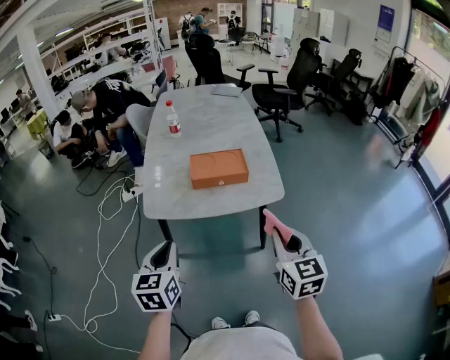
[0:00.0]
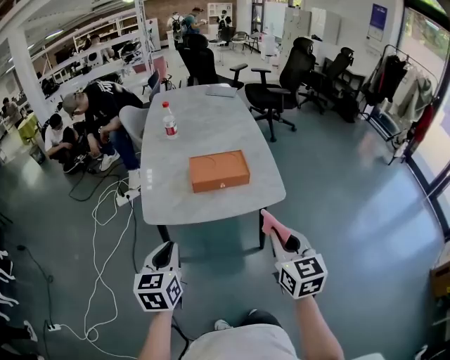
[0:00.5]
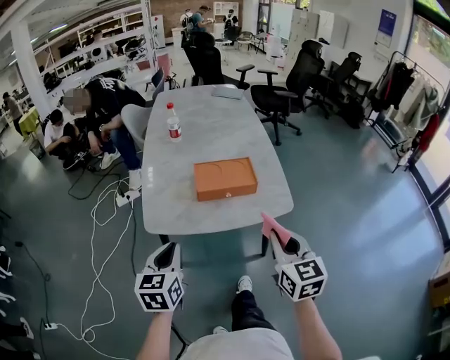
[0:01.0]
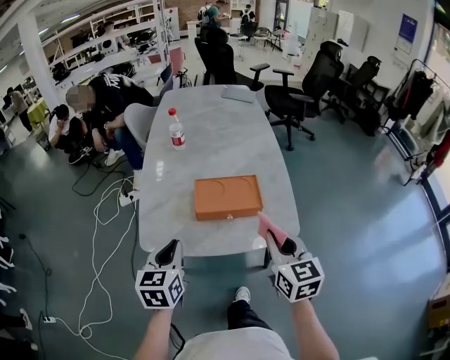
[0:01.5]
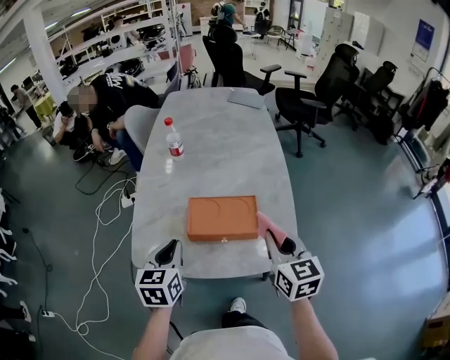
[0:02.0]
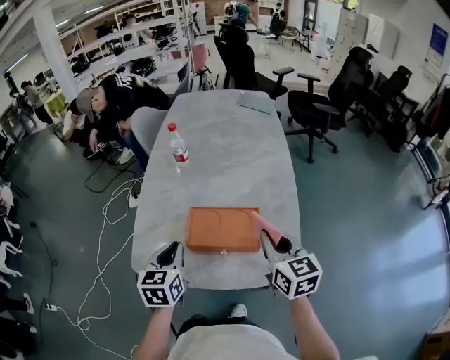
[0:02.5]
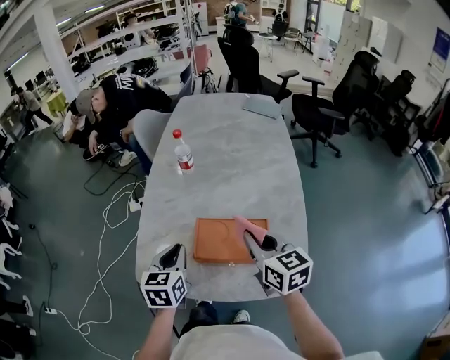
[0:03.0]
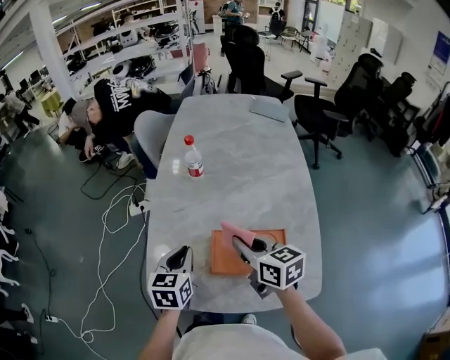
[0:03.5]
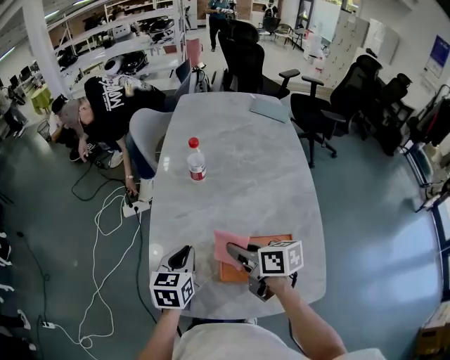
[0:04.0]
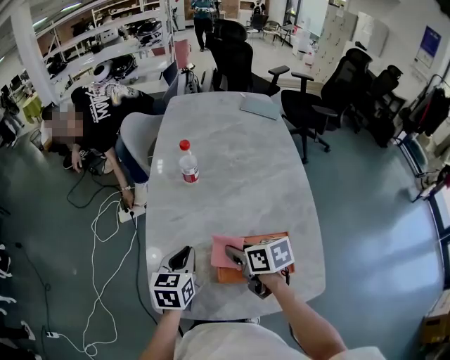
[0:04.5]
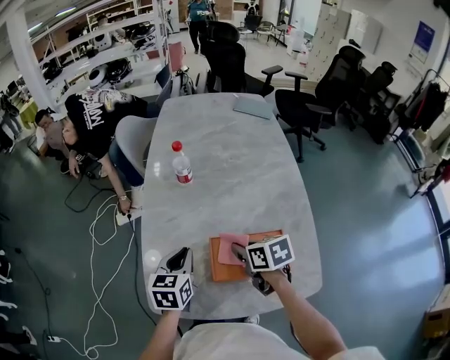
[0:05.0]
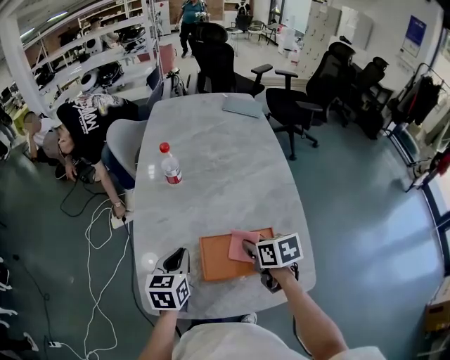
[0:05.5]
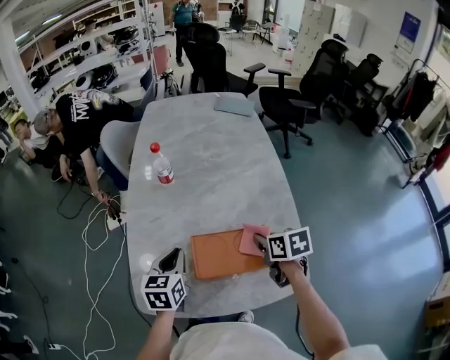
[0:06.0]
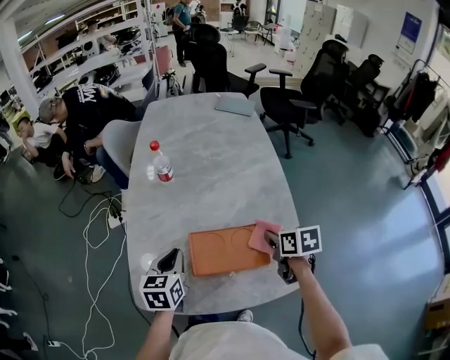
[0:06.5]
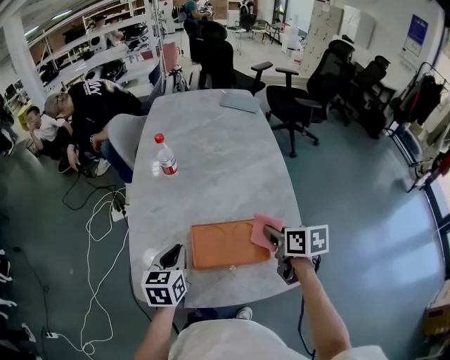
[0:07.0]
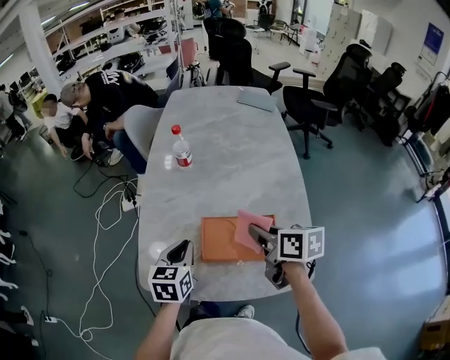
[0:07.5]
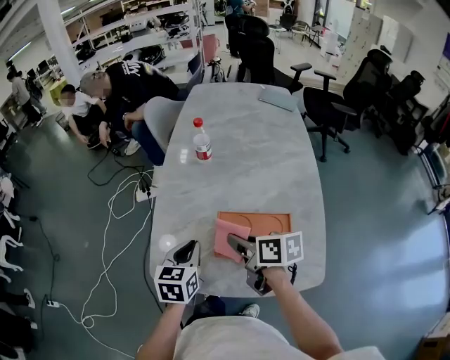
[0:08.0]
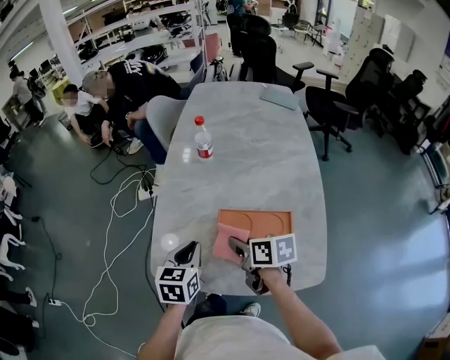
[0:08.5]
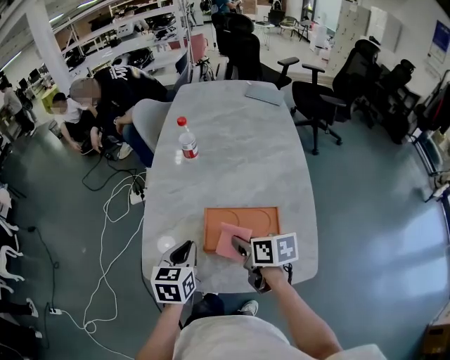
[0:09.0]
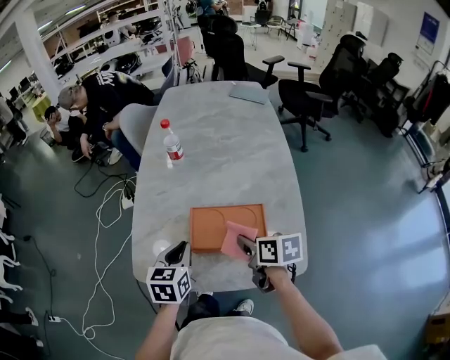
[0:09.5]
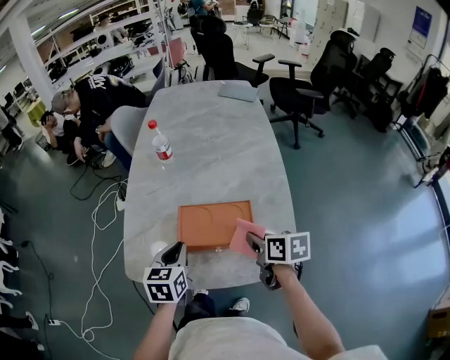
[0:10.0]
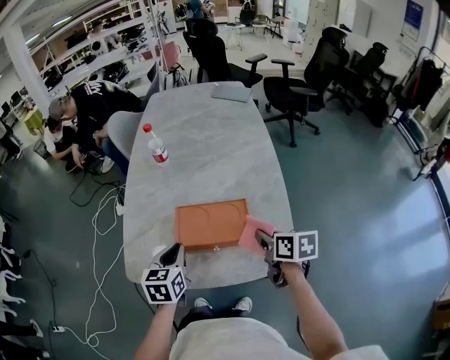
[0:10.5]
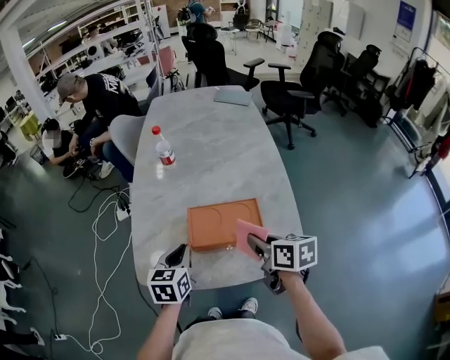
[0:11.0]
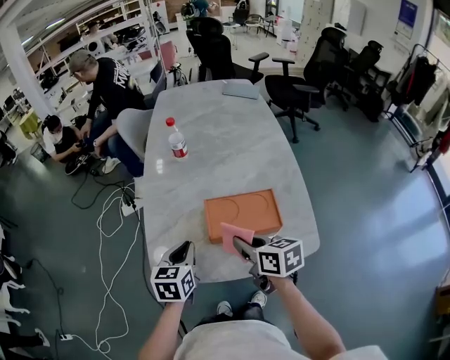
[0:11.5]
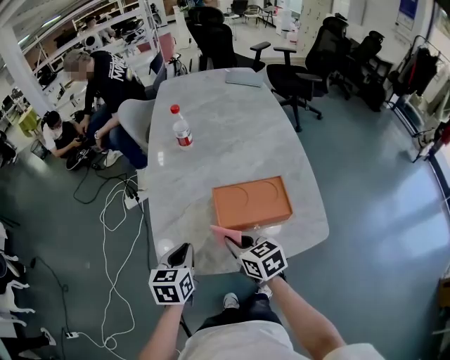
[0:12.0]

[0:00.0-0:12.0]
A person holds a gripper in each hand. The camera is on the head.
0:00.0 to 0:02.0: The grippers both shift forward by some 25 cm.
0:02.0 to 0:04.0: The right gripper moves forward and to the left, about 25 cm, and changes its angle by some 50 degrees. Meanwhile the left gripper goes some 15 cm forward.
0:04.0 to 0:06.0: The left gripper shifts by approximately 5 cm; the right gripper travels to the right by roughly 15 cm, and rotates about 30 degrees.
0:06.0 to 0:08.0: The left gripper moves backward, about 5 cm; the right gripper shifts about 15 cm to the left, and swivels roughly 30 degrees.
0:08.0 to 0:10.0: The right gripper is displaced to the right and backward by approximately 20 cm, while the left gripper is displaced to the right by approximately 5 cm.
0:10.0 to 0:12.0: The left gripper heads to the left, covering some 10 cm; the right gripper heads to the left, covering some 20 cm, and changes its angle by some 30 degrees.

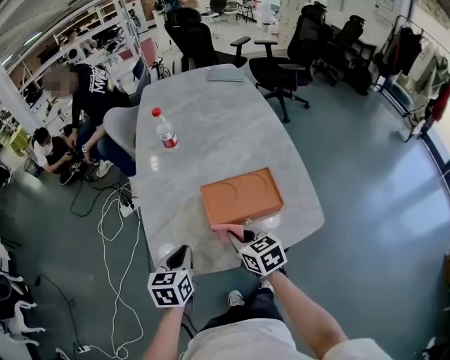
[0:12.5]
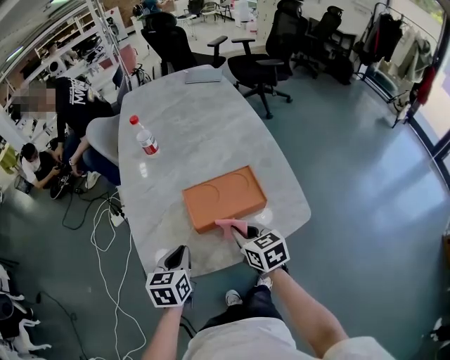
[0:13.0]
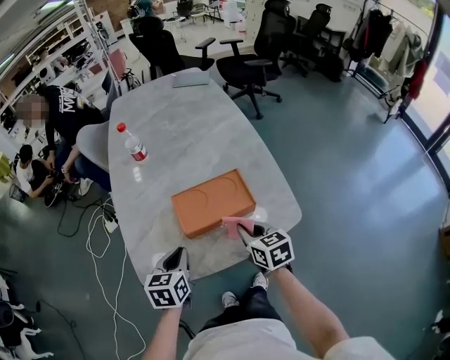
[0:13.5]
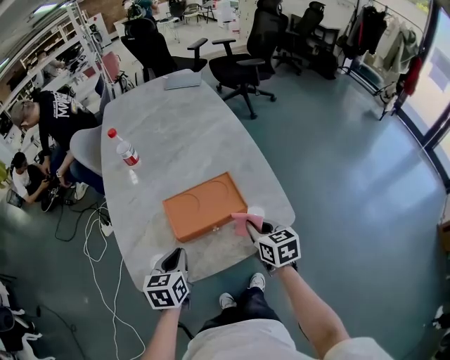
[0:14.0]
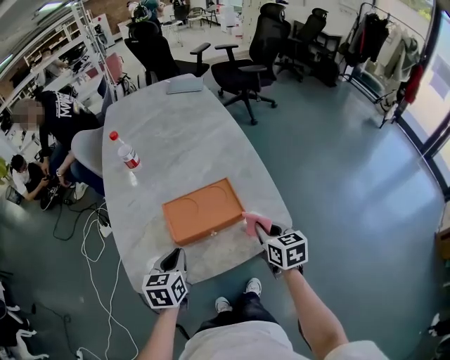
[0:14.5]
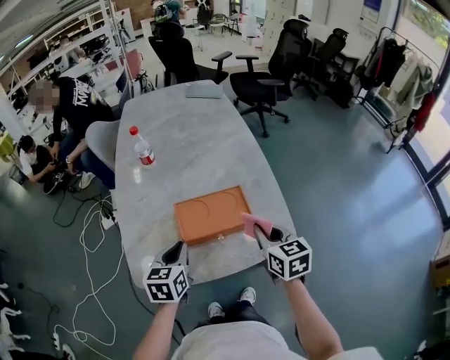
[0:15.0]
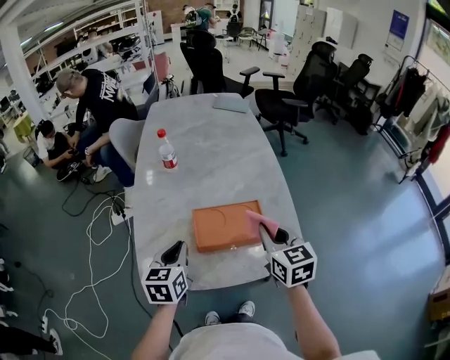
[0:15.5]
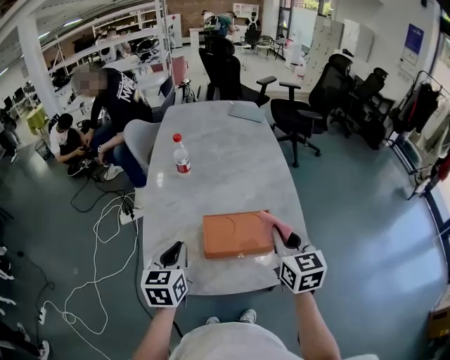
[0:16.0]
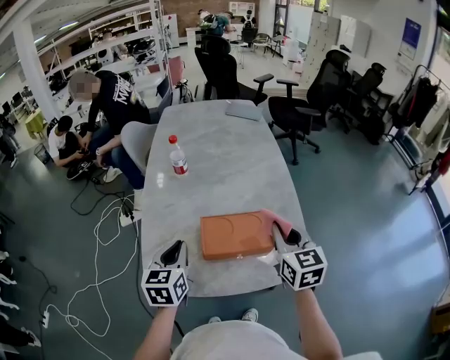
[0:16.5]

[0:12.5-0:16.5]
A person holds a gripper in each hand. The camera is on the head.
0:12.5 to 0:14.5: The right gripper moves to the right, roughly 20 cm, and swivels about 20 degrees. Meanwhile the left gripper heads to the right, covering some 10 cm.
0:14.5 to 0:16.5: The left gripper is displaced upward and to the left by some 10 cm. Meanwhile the right gripper goes about 15 cm upward and forward, and turns by some 20 degrees.

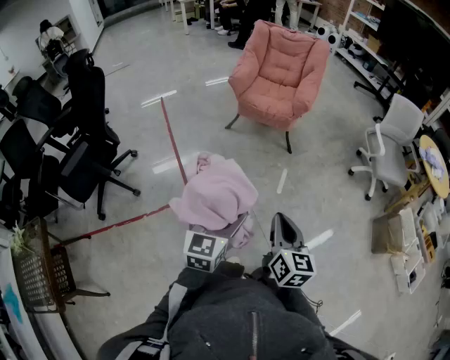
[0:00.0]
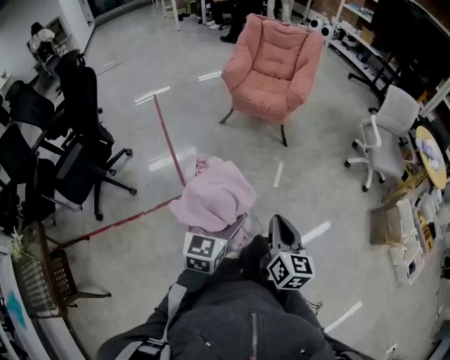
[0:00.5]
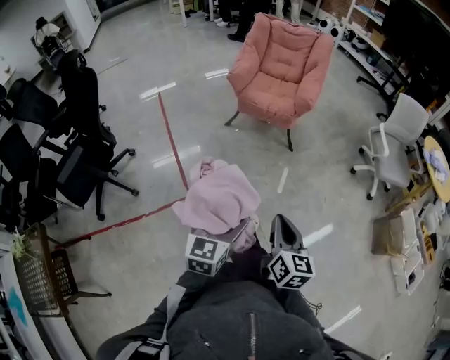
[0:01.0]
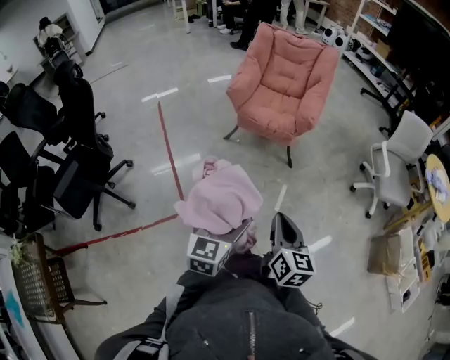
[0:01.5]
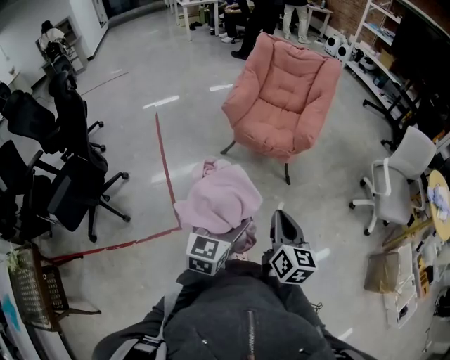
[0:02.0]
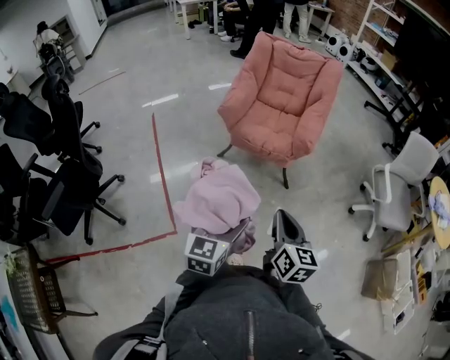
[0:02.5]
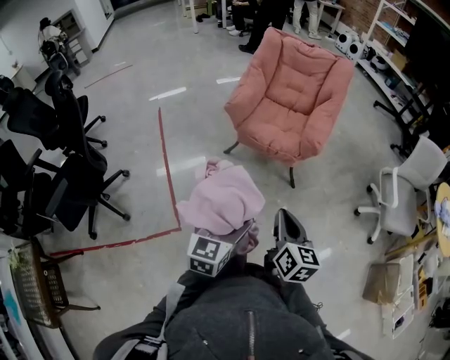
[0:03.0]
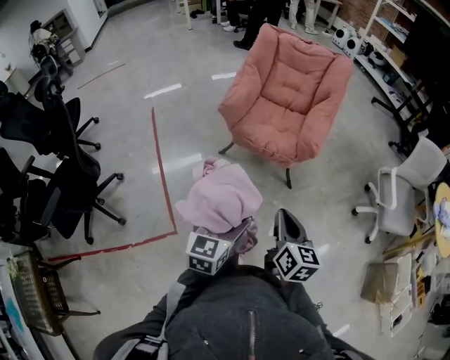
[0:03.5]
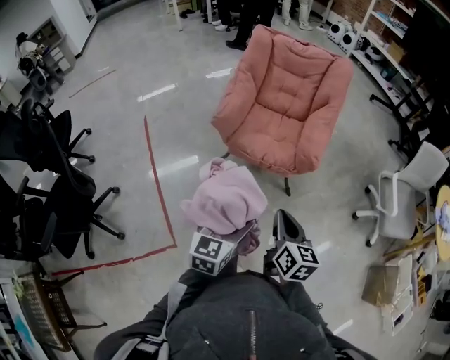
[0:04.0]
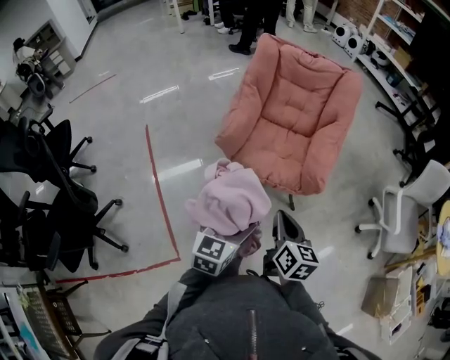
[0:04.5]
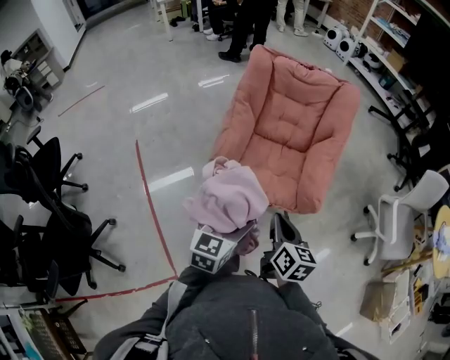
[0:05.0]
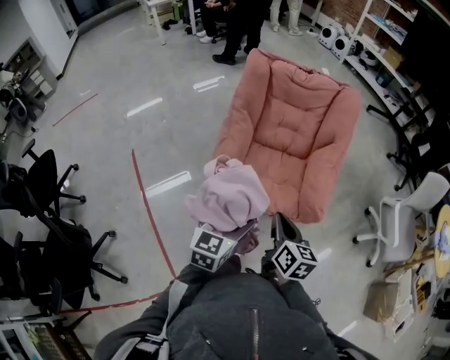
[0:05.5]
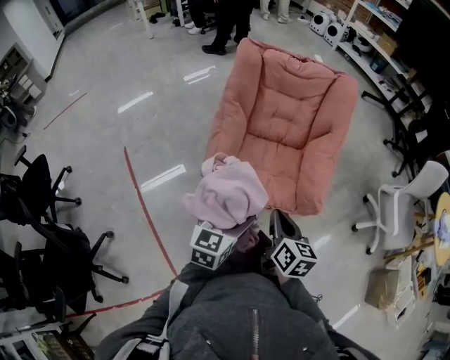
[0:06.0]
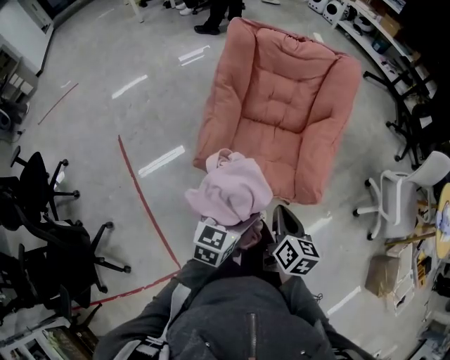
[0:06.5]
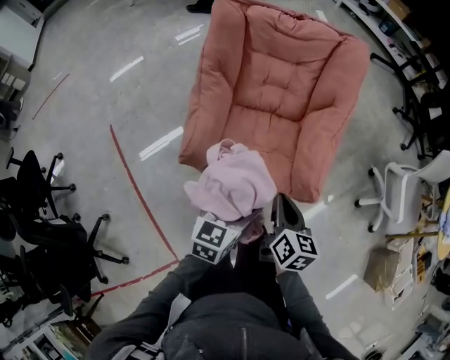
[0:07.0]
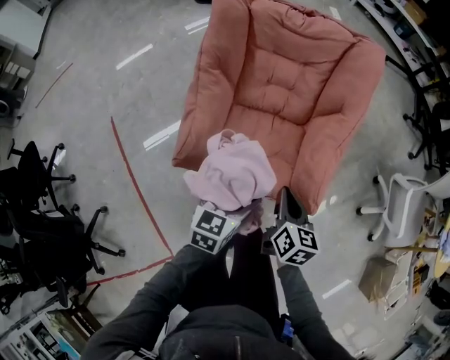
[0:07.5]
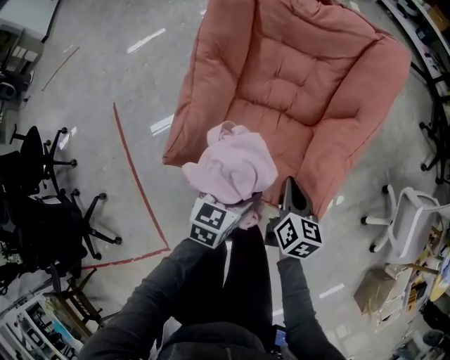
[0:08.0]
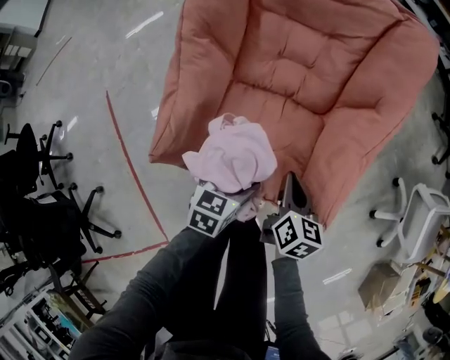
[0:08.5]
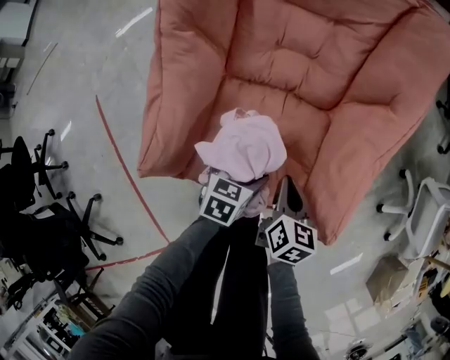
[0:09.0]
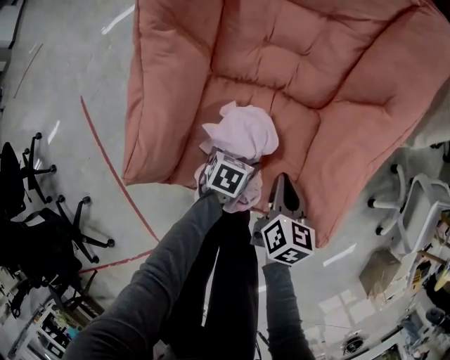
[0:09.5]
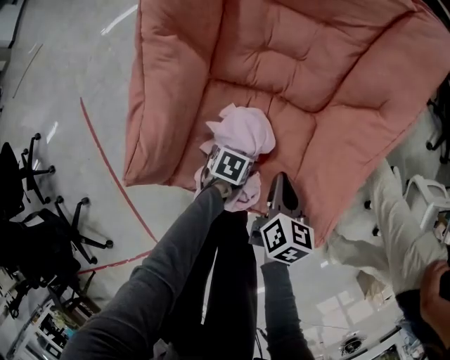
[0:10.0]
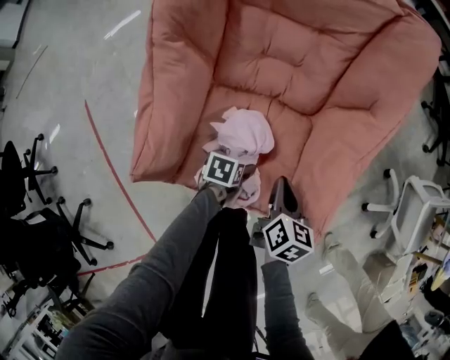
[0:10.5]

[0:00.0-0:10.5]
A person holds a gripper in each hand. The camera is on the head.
0:00.0 to 0:02.0: The grippers both shift forward by about 25 cm.
0:02.0 to 0:04.0: Both grippers move forward, some 20 cm.
0:04.0 to 0:06.5: The two grippers go roughly 30 cm forward.
0:06.5 to 0:08.5: The left gripper is displaced downward and forward by about 30 cm; the right gripper heads forward and downward, covering approximately 30 cm.
0:08.5 to 0:10.5: The left gripper travels downward by roughly 15 cm, and swivels roughly 30 degrees.
